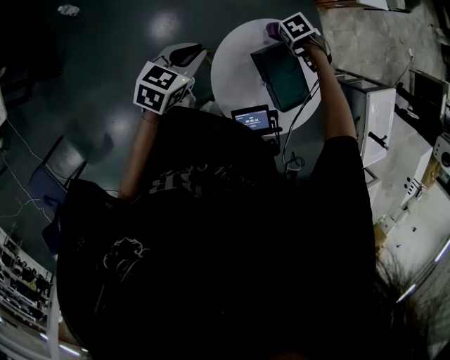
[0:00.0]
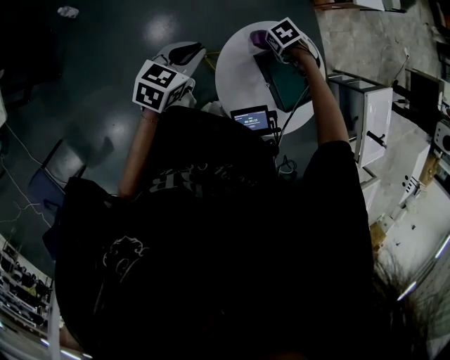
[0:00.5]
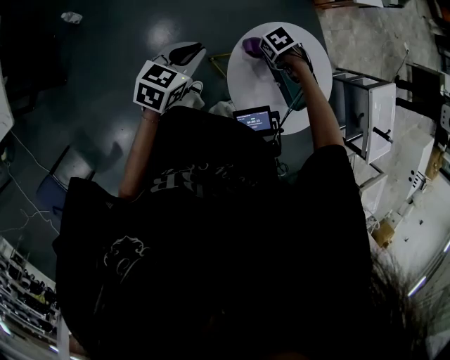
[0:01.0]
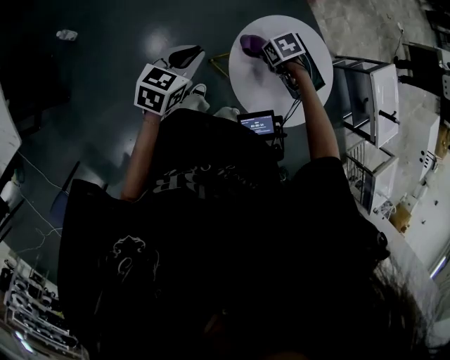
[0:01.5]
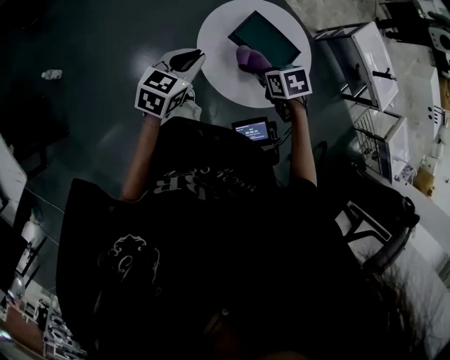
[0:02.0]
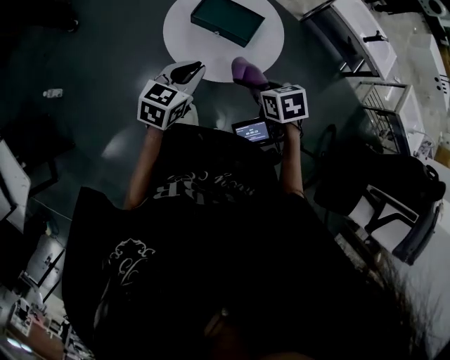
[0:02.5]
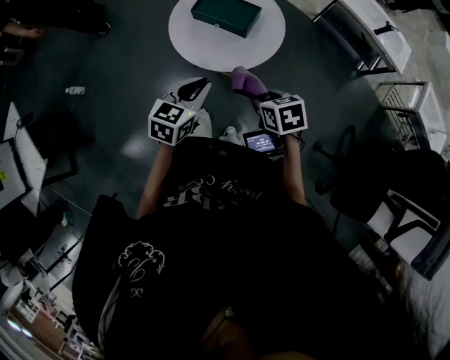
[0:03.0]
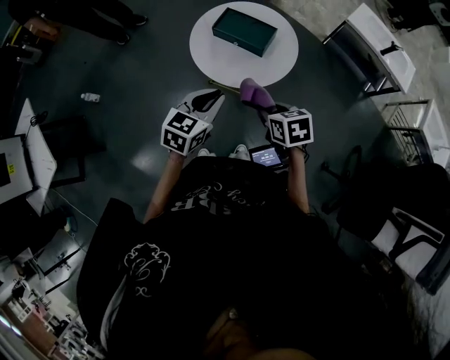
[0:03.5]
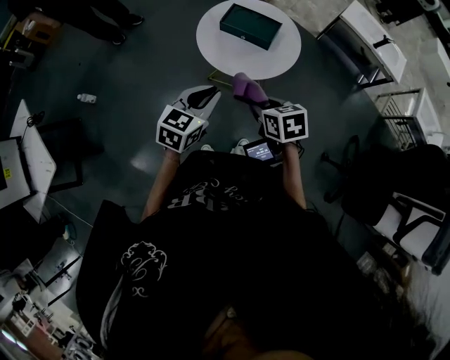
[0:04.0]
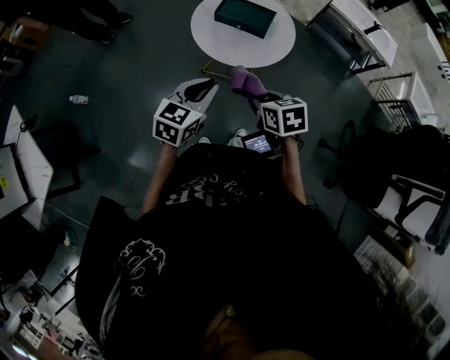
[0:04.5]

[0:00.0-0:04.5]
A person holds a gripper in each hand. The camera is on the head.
0:00.0 to 0:02.0: The left gripper shifts by roughly 10 cm, and rotates approximately 20 degrees.
0:02.0 to 0:04.5: The left gripper moves roughly 30 cm.

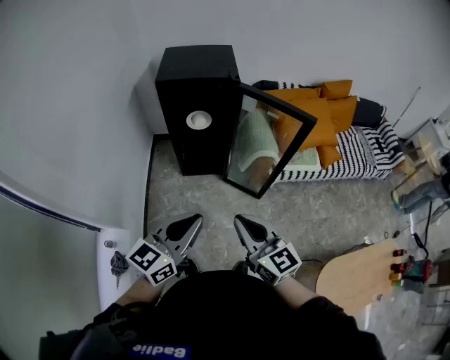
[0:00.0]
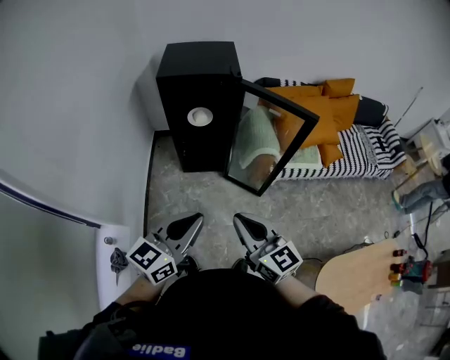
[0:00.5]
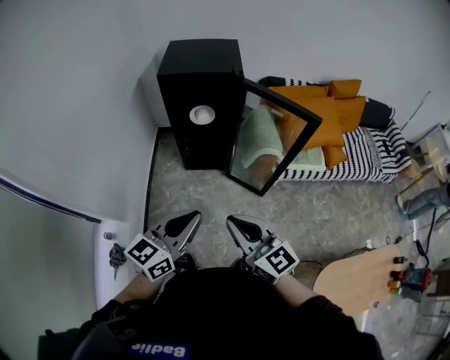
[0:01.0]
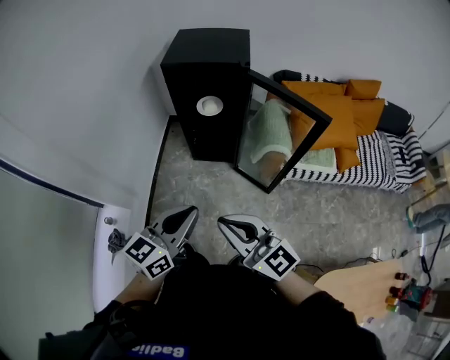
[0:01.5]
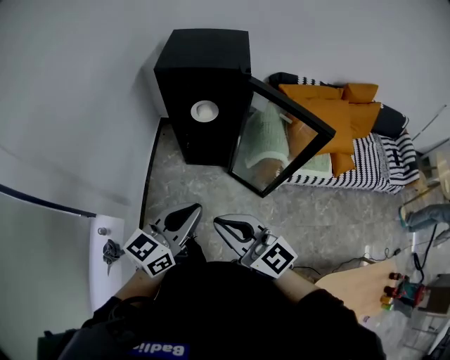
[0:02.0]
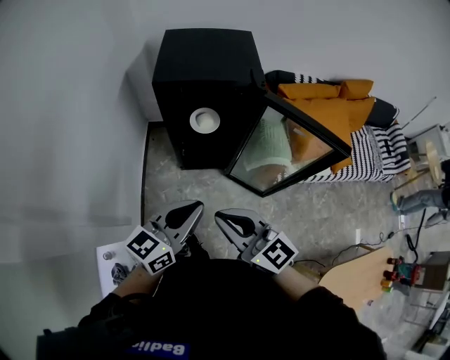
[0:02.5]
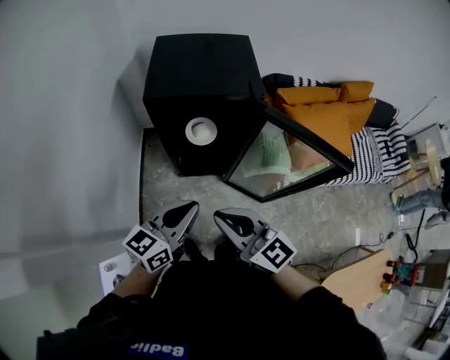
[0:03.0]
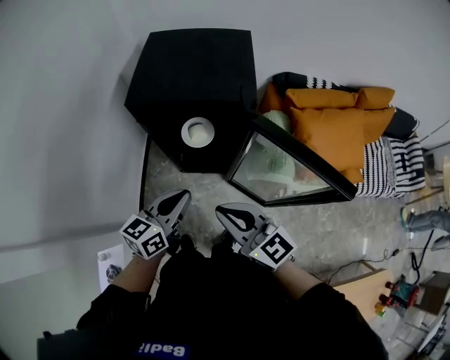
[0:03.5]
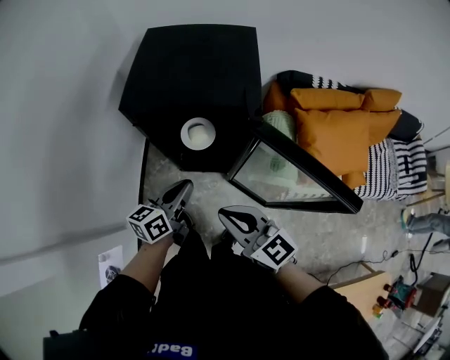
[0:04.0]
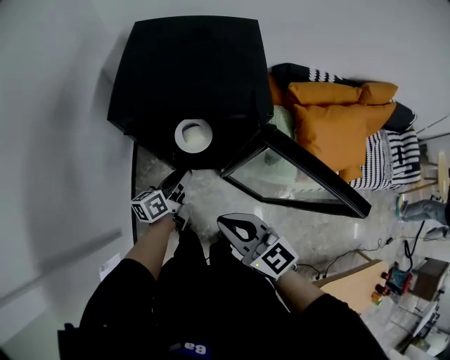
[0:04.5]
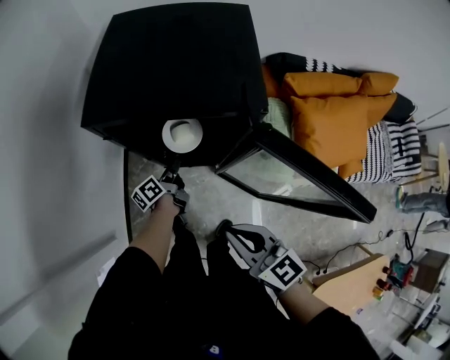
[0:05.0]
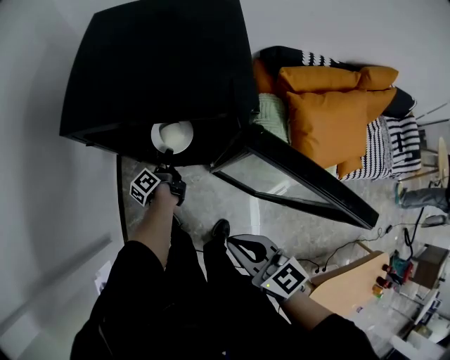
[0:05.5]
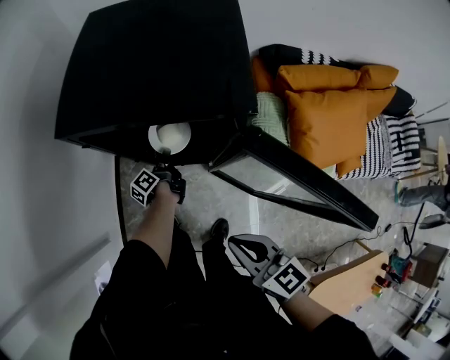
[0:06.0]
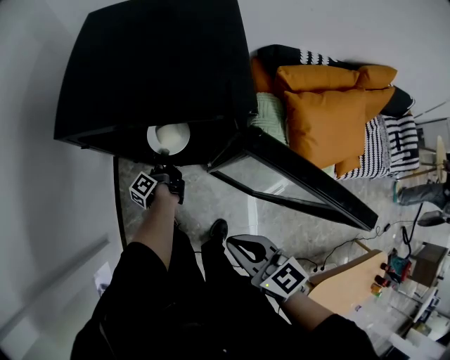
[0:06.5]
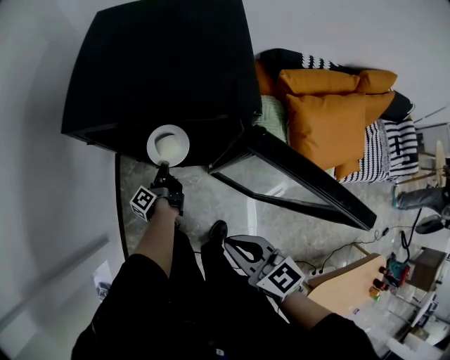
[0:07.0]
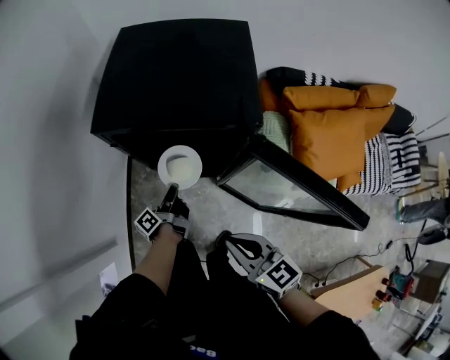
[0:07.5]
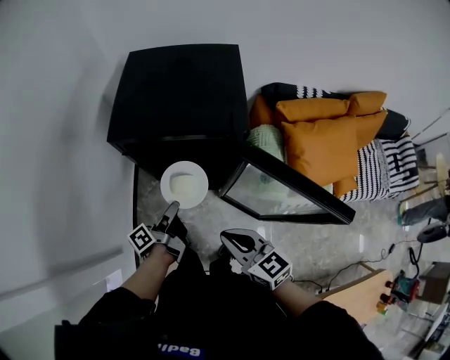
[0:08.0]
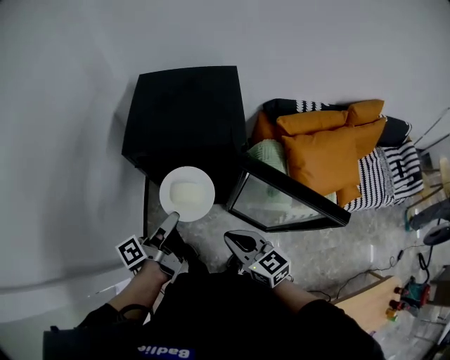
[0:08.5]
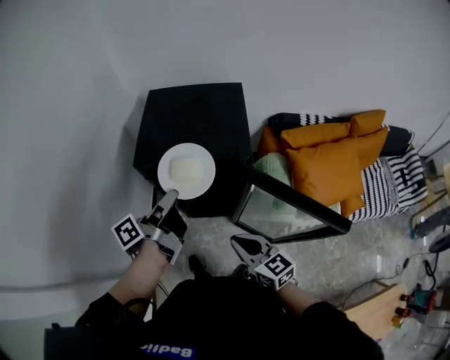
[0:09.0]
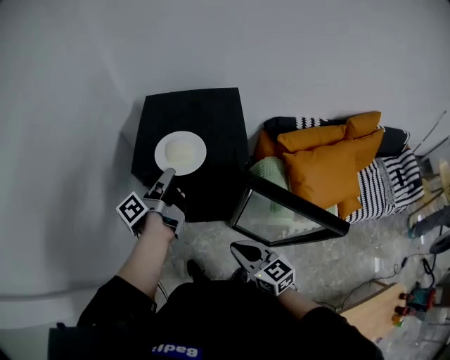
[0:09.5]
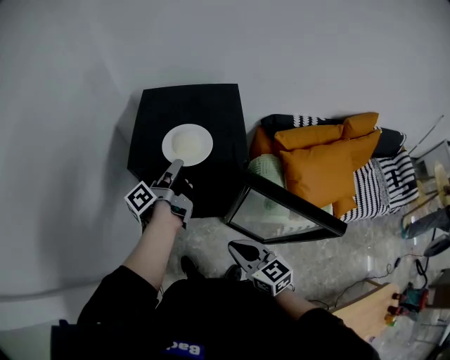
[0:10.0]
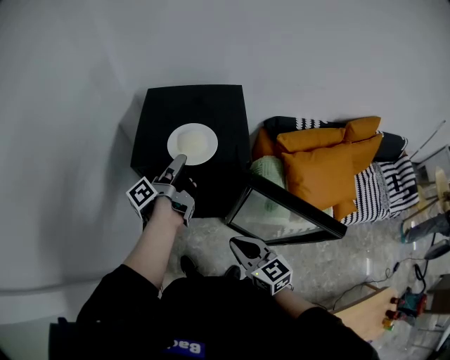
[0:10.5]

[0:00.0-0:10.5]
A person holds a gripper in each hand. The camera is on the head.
0:00.0 to 0:02.0: The grippers both shift forward by approximately 10 cm. The right gripper rotates some 20 degrees.
0:02.0 to 0:04.0: The right gripper goes some 30 cm forward. The left gripper shifts some 35 cm forward and downward, and changes its angle by about 20 degrees.
0:04.0 to 0:06.5: The left gripper shifts some 30 cm downward and forward, twists roughly 50 degrees counterclockwise, seen from behind, and opens, then closes once more; the right gripper travels downward by some 10 cm, and turns by roughly 20 degrees.
0:06.5 to 0:08.5: The left gripper shifts approximately 40 cm upward and backward, and turns by about 20 degrees. Meanwhile the right gripper moves upward, some 5 cm.
0:08.5 to 0:10.5: The left gripper is displaced forward by approximately 20 cm.

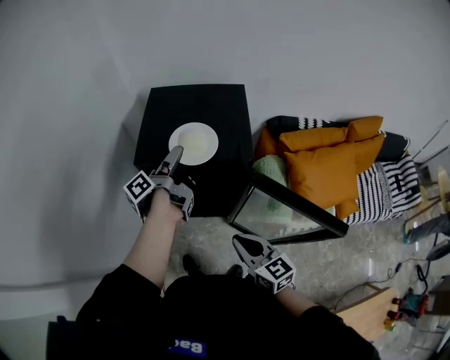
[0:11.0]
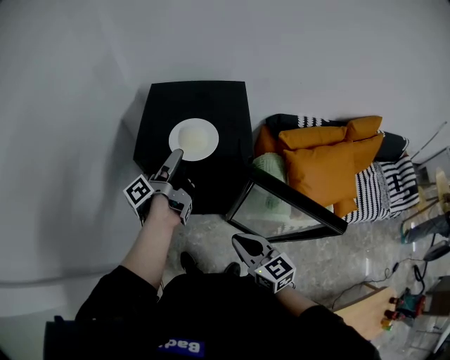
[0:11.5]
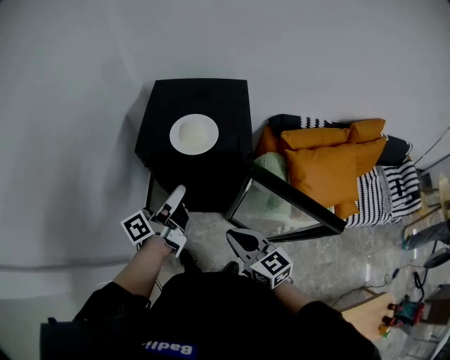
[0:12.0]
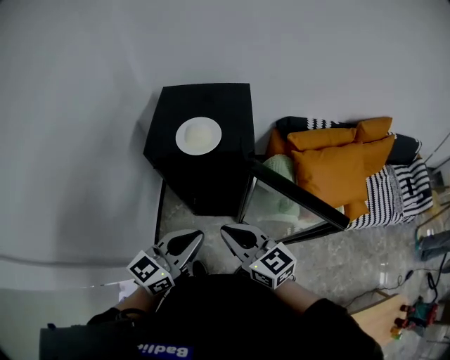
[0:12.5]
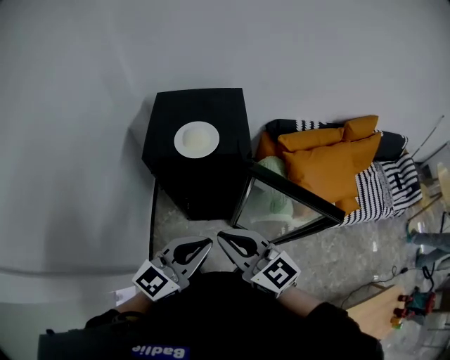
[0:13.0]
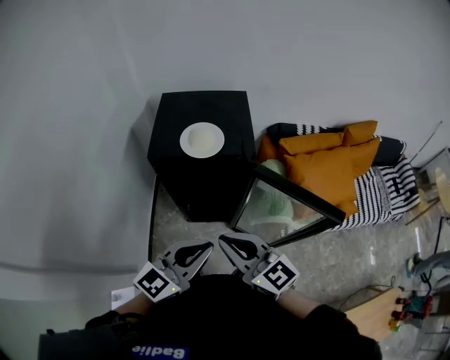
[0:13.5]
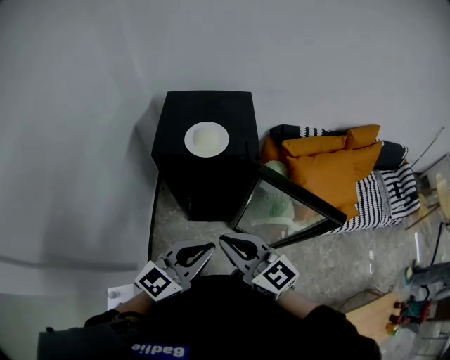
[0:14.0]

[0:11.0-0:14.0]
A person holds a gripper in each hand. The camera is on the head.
0:11.0 to 0:12.5: The left gripper heads backward, covering about 25 cm, twists about 80 degrees clockwise, seen from behind, and closes. The right gripper goes approximately 5 cm upward.
0:12.5 to 0:14.0: The left gripper ends up some 5 cm from where it was. Meanwhile the right gripper ends up some 5 cm from where it was.

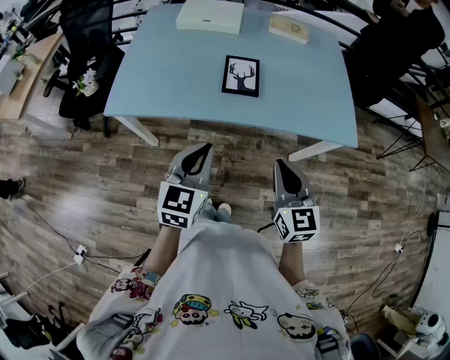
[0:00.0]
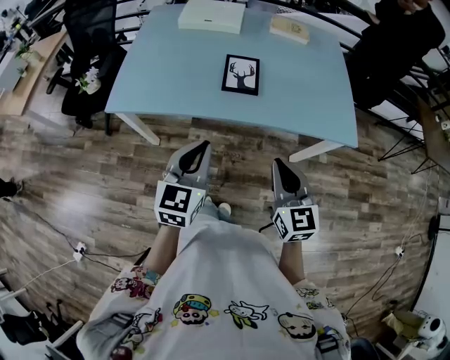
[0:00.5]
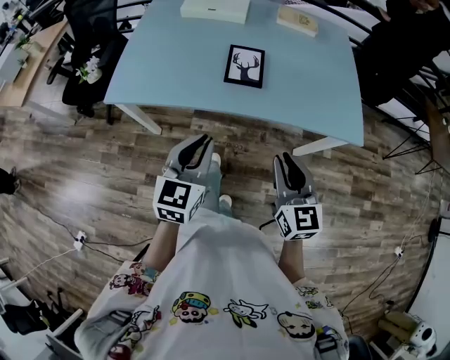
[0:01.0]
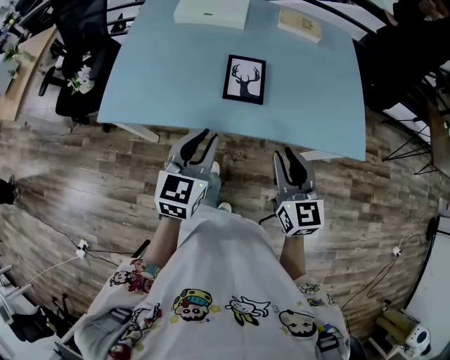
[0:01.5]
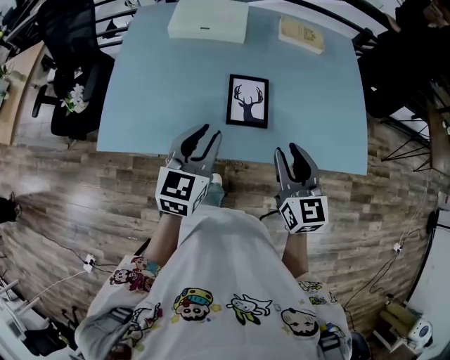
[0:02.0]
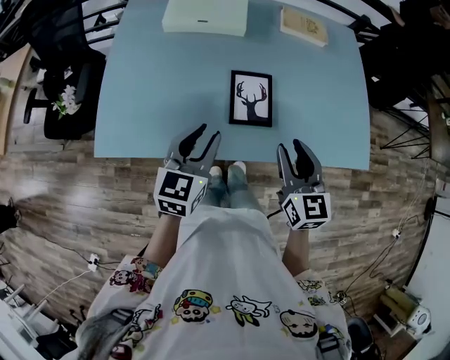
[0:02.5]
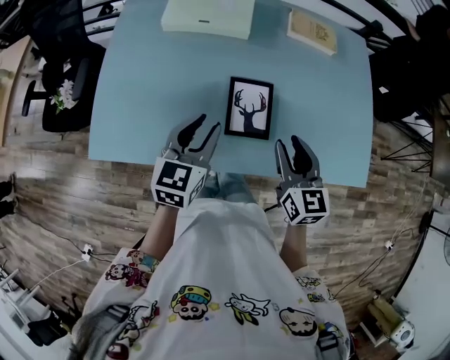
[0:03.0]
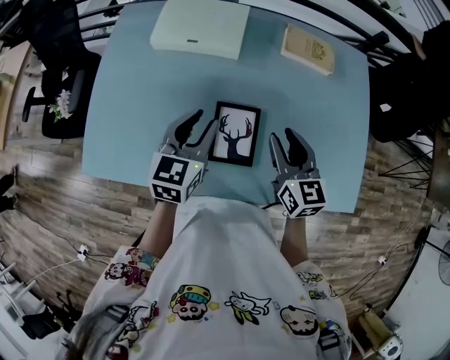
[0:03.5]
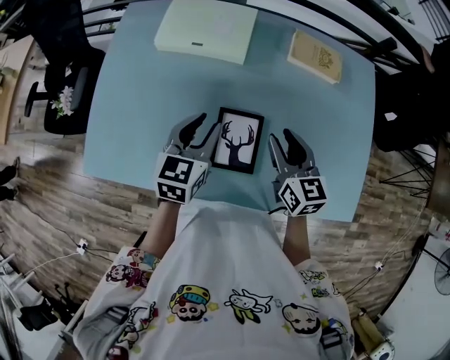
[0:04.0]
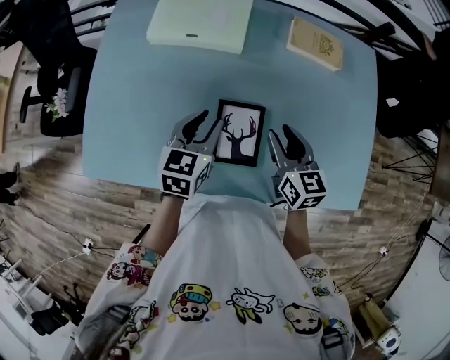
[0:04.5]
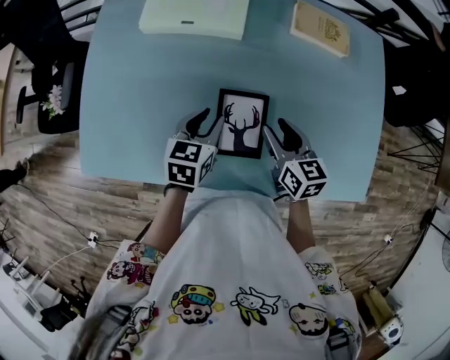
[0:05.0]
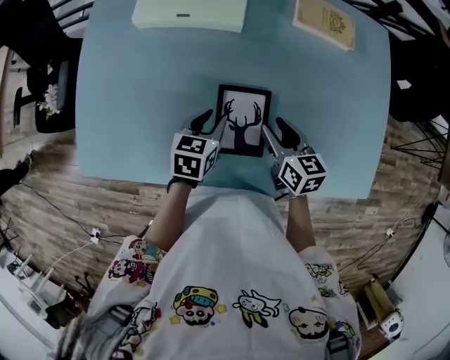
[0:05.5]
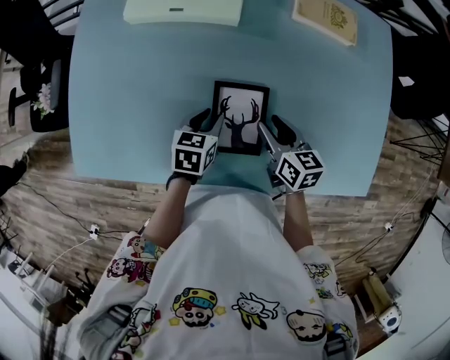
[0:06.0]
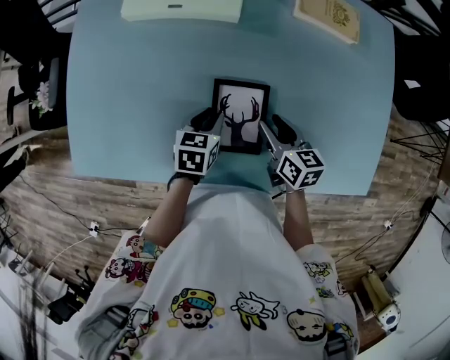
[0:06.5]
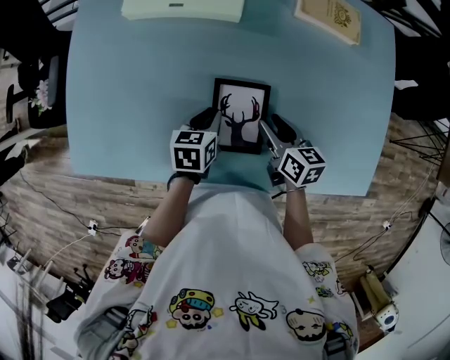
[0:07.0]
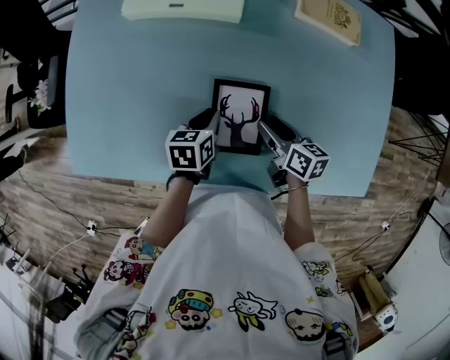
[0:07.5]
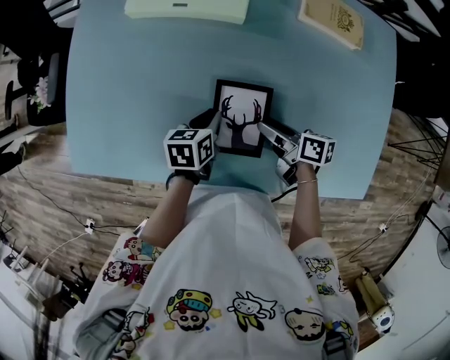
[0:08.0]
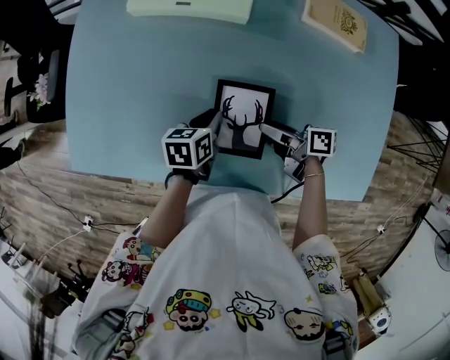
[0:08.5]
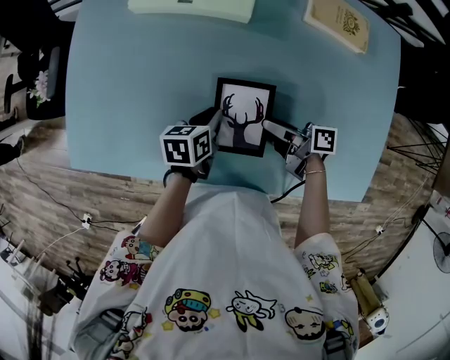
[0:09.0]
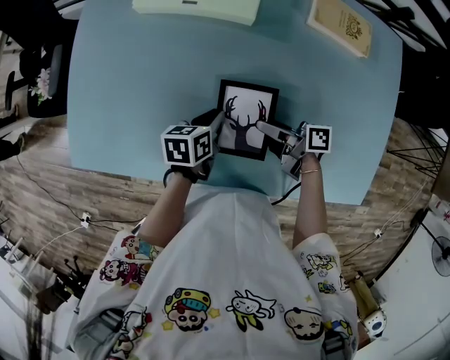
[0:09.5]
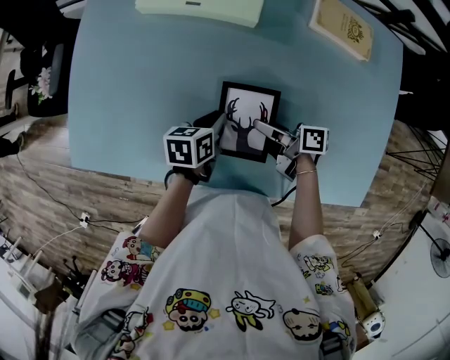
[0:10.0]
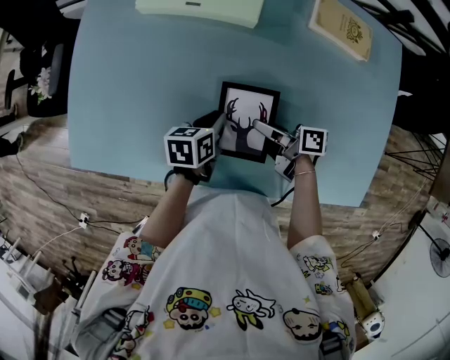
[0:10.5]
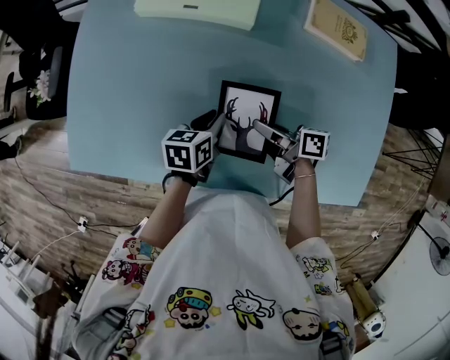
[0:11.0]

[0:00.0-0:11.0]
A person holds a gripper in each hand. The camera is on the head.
0:00.0 to 0:02.0: Both grippers travel together forward, about 20 cm. The left gripper opens. Meanwhile the right gripper opens.
0:02.0 to 0:03.5: Both grippers move forward, some 20 cm.
0:03.5 to 0:05.5: The grippers both shift downward by some 15 cm. The right gripper rotates roughly 20 degrees, while the left gripper changes its angle by approximately 30 degrees.
0:05.5 to 0:07.5: The right gripper shifts about 5 cm downward.
0:07.5 to 0:09.0: The right gripper changes its angle by roughly 40 degrees.
0:09.0 to 0:11.0: The right gripper closes its fingers.
